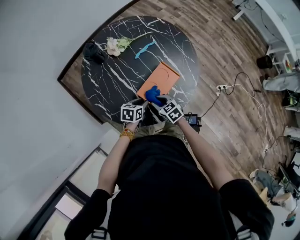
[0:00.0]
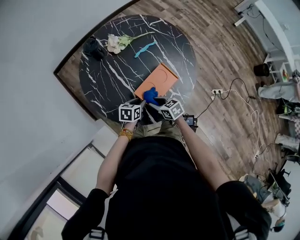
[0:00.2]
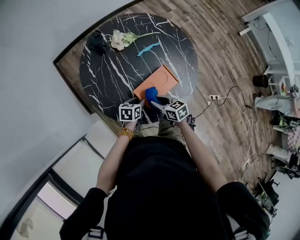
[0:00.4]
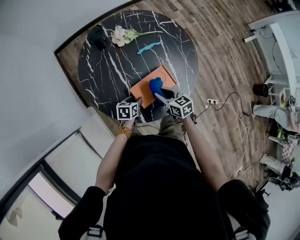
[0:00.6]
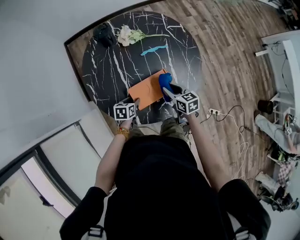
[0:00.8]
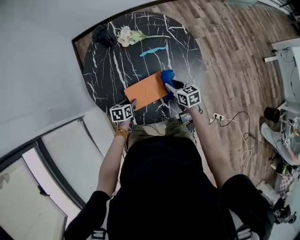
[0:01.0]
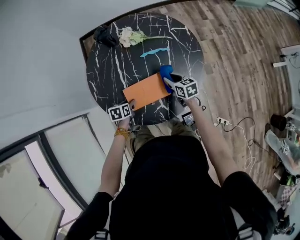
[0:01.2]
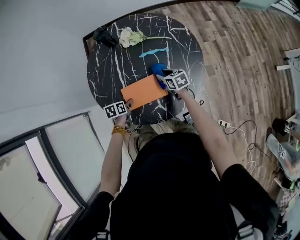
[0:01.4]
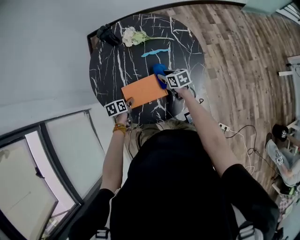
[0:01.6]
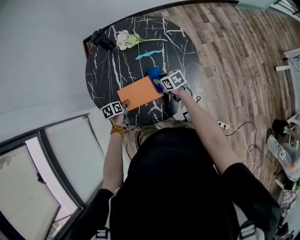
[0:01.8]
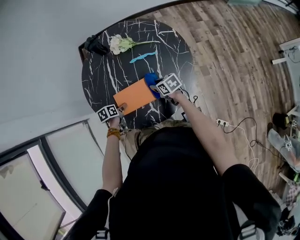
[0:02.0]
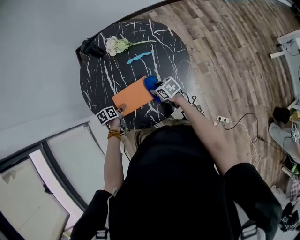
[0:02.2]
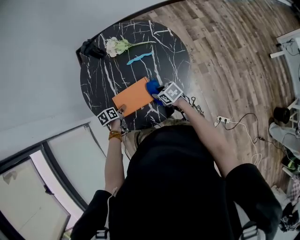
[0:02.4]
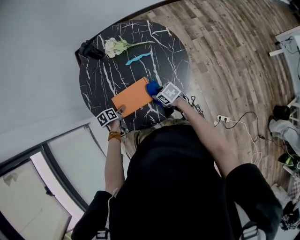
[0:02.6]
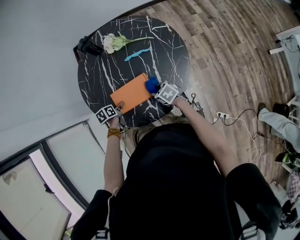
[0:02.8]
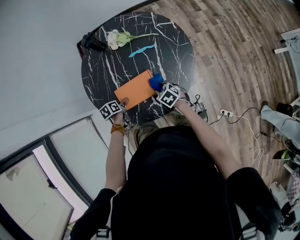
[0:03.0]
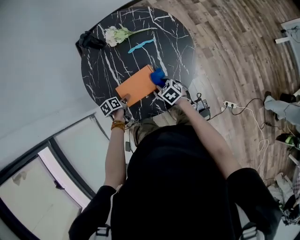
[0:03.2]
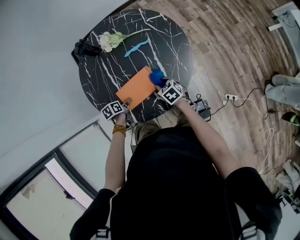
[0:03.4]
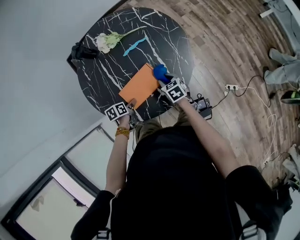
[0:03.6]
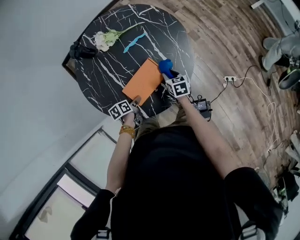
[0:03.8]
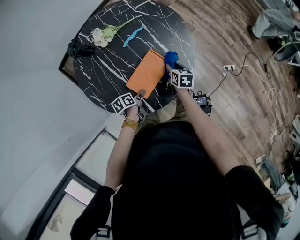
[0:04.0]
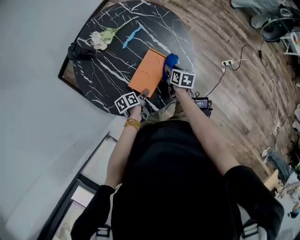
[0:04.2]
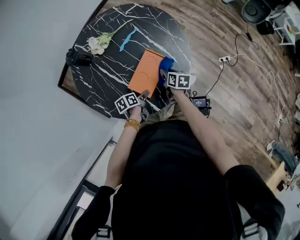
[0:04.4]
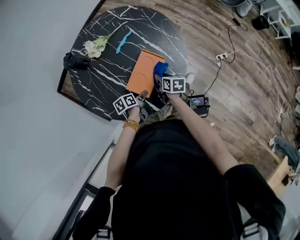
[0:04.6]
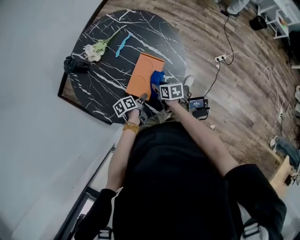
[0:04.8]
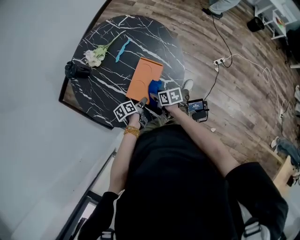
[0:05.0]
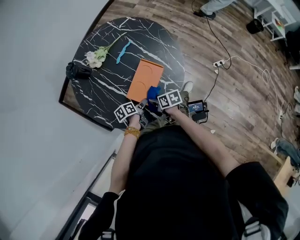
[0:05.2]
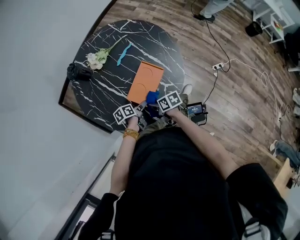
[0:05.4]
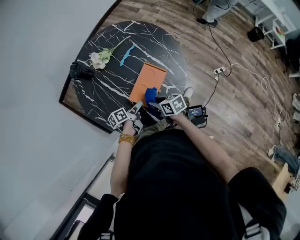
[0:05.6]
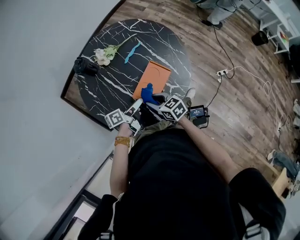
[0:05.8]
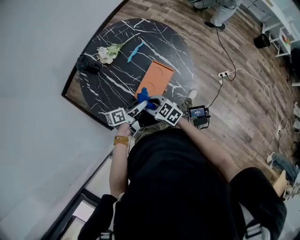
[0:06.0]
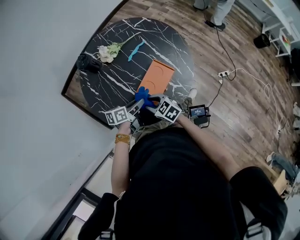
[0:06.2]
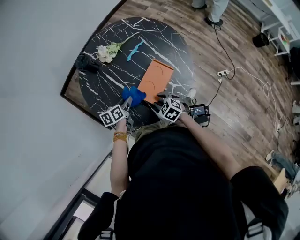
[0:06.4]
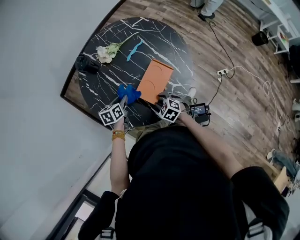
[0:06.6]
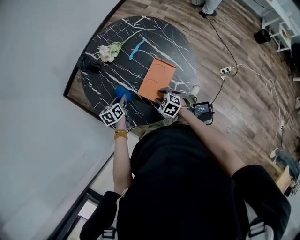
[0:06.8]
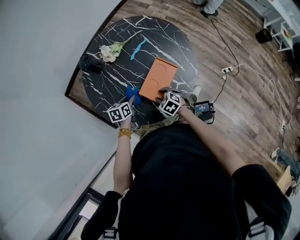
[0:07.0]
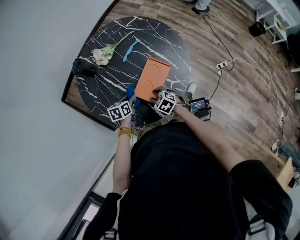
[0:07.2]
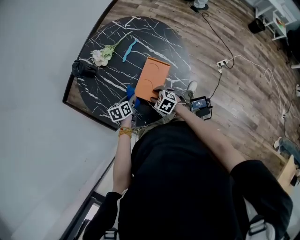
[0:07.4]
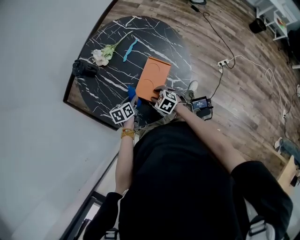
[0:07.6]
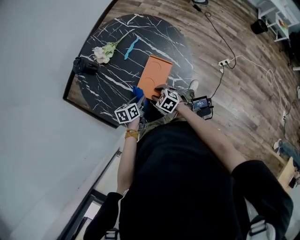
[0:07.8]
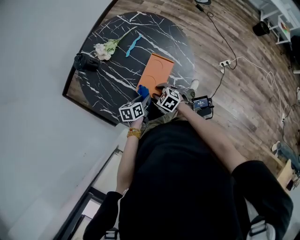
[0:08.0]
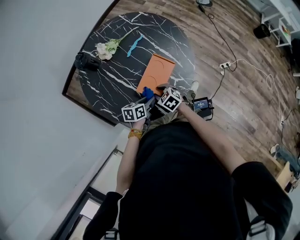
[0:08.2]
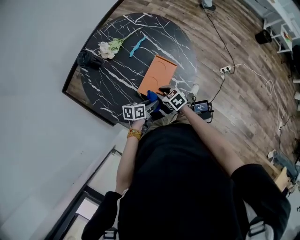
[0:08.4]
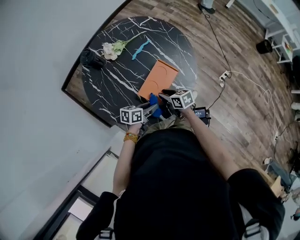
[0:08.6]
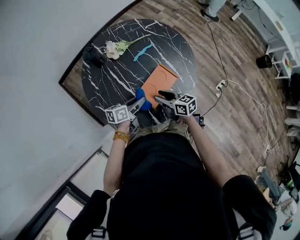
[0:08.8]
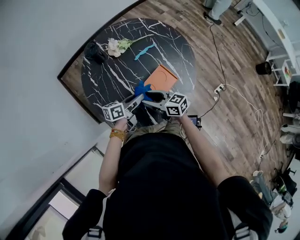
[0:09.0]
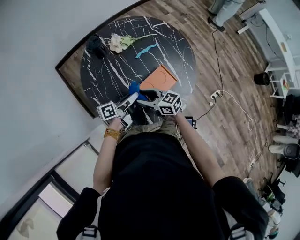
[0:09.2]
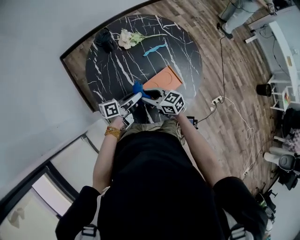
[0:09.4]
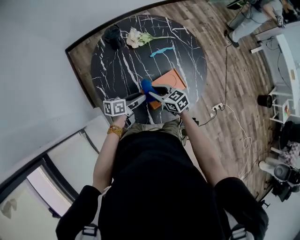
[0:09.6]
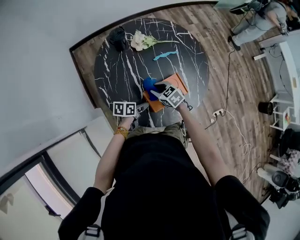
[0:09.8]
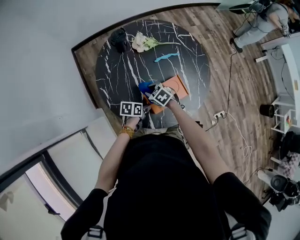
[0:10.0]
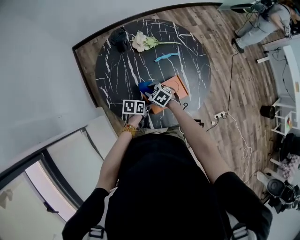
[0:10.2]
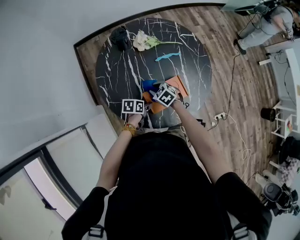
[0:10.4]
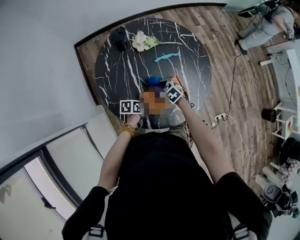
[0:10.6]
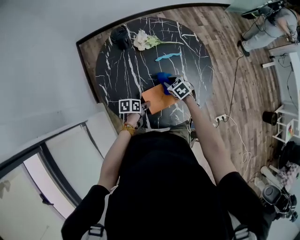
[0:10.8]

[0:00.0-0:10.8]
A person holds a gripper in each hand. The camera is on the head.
0:00.0 to 0:01.6: The left gripper rolls counterclockwise, seen from behind, by some 50 degrees. Meanwhile the right gripper ends up some 25 cm from where it was, and turns by roughly 30 degrees.
0:01.6 to 0:03.0: The right gripper goes some 10 cm backward, and turns by approximately 30 degrees.
0:03.0 to 0:04.6: The left gripper changes its angle by some 40 degrees. Meanwhile the right gripper moves roughly 10 cm, and twists roughly 80 degrees clockwise, seen from behind.
0:04.6 to 0:06.2: The right gripper travels to the left, backward and upward by about 20 cm, and rolls counterclockwise, seen from behind, by about 50 degrees, while the left gripper shifts roughly 10 cm upward, changes its angle by roughly 30 degrees, and closes.
0:06.2 to 0:07.8: Both grippers travel together downward, some 5 cm. The left gripper moves some 10 cm to the left and comes back, and turns by approximately 20 degrees.
0:07.8 to 0:09.2: The grippers both shift upward by roughly 10 cm. The right gripper tips its fingers upward by about 40 degrees. The left gripper points its fingers roughly 40 degrees further upward.
0:09.2 to 0:10.8: The right gripper moves roughly 20 cm, tips its fingers downward by about 40 degrees, and closes its fingers. The left gripper heads downward, covering about 15 cm, and tips its fingers downward by roughly 40 degrees.

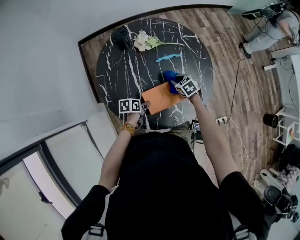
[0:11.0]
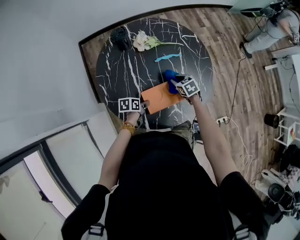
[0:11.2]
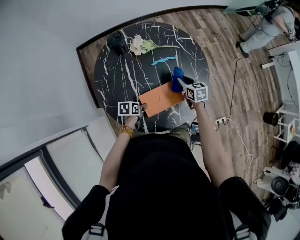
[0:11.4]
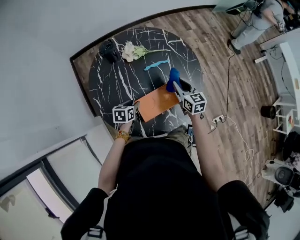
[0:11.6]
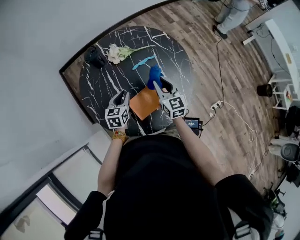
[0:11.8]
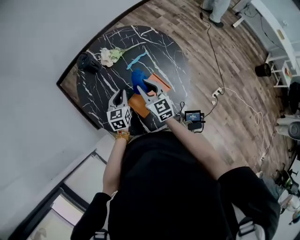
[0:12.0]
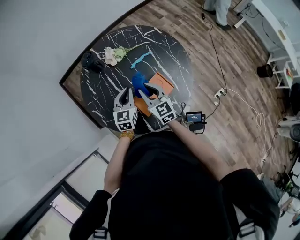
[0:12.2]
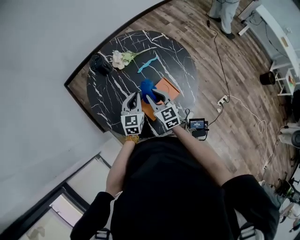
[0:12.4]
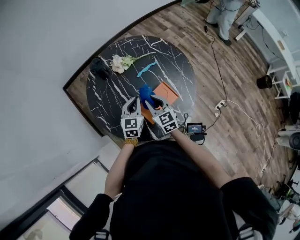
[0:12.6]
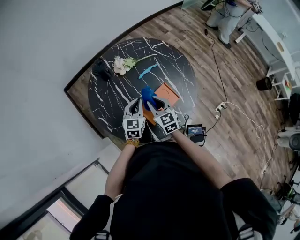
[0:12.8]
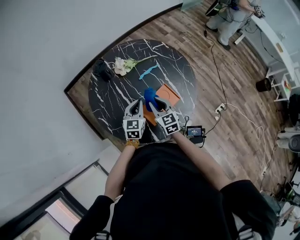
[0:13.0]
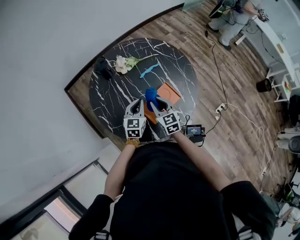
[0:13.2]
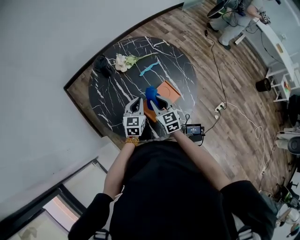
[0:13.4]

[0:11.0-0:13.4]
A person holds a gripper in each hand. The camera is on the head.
0:11.0 to 0:12.2: The left gripper goes approximately 20 cm upward and forward, swivels approximately 60 degrees, and closes up. The right gripper shifts roughly 20 cm upward, to the left and backward, and angles its fingers upward, by roughly 40 degrees.
0:12.2 to 0:13.4: The right gripper changes place by approximately 5 cm.

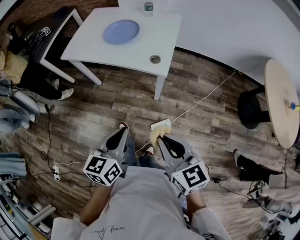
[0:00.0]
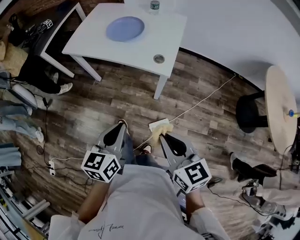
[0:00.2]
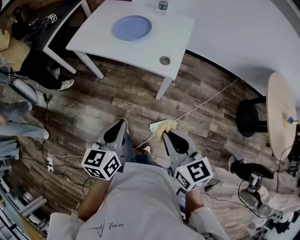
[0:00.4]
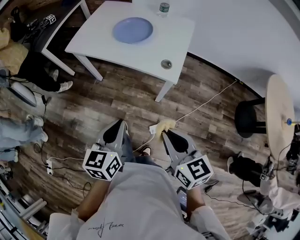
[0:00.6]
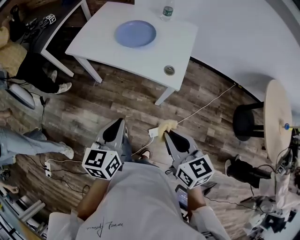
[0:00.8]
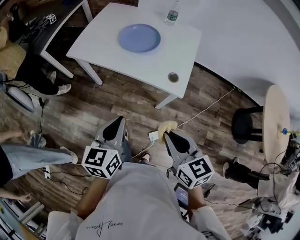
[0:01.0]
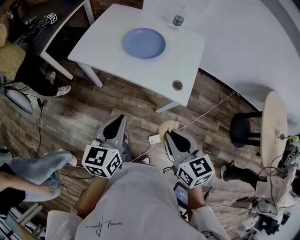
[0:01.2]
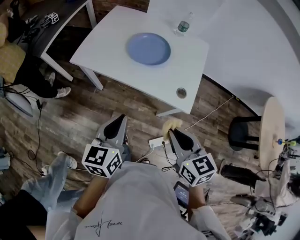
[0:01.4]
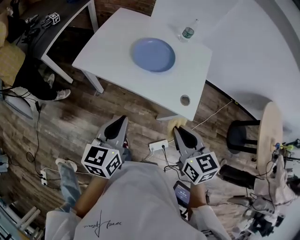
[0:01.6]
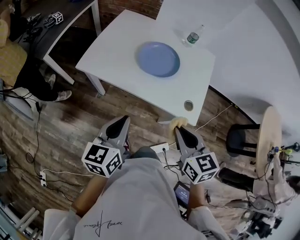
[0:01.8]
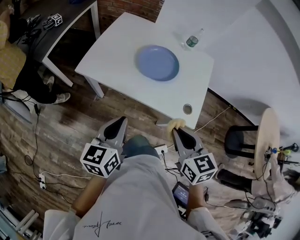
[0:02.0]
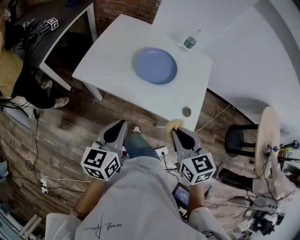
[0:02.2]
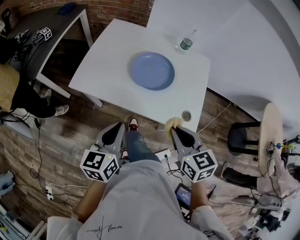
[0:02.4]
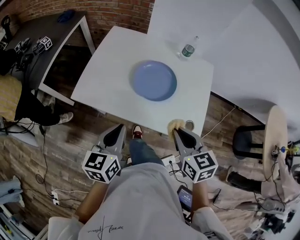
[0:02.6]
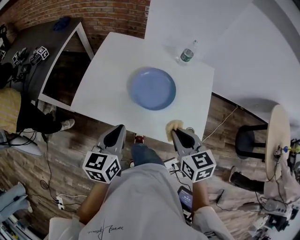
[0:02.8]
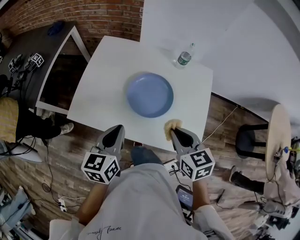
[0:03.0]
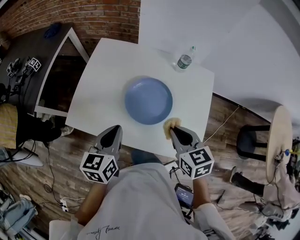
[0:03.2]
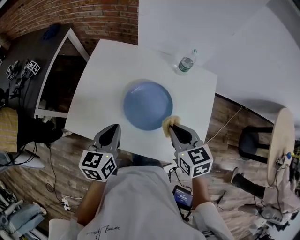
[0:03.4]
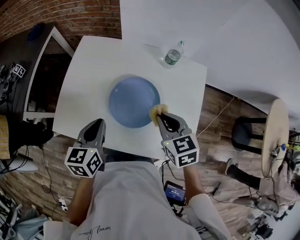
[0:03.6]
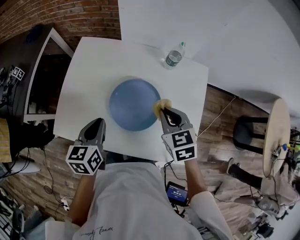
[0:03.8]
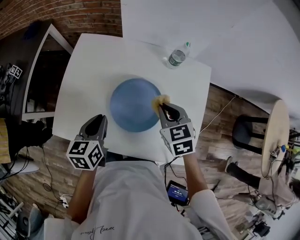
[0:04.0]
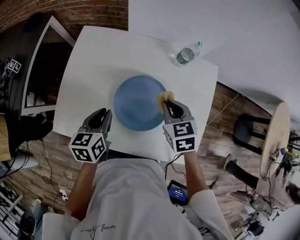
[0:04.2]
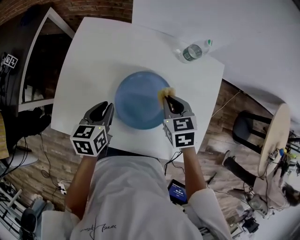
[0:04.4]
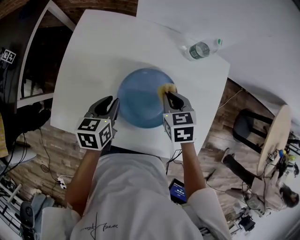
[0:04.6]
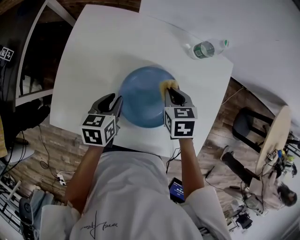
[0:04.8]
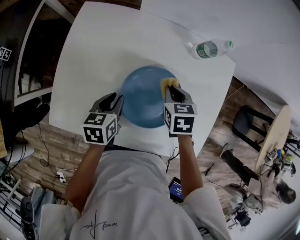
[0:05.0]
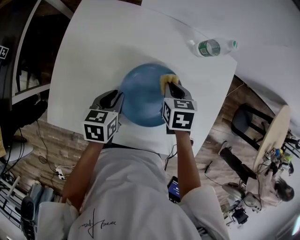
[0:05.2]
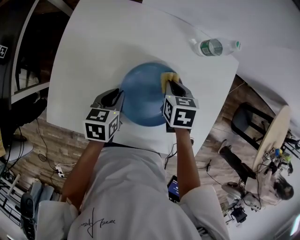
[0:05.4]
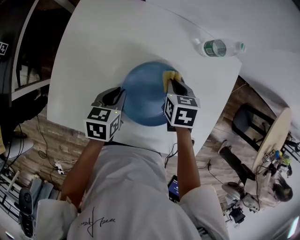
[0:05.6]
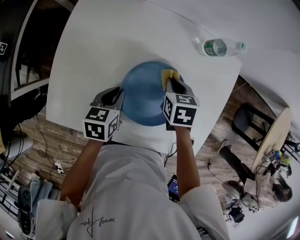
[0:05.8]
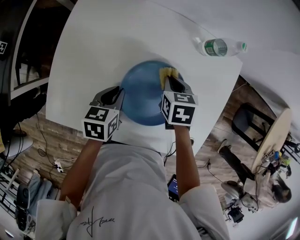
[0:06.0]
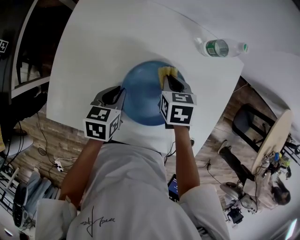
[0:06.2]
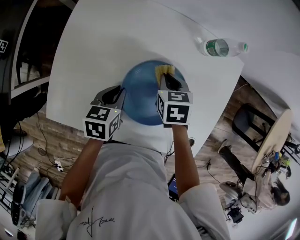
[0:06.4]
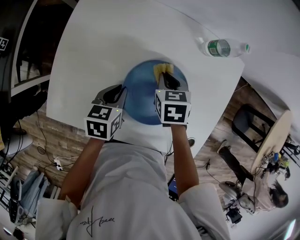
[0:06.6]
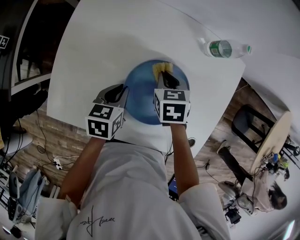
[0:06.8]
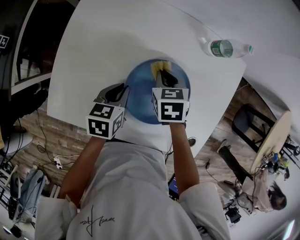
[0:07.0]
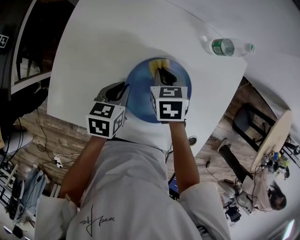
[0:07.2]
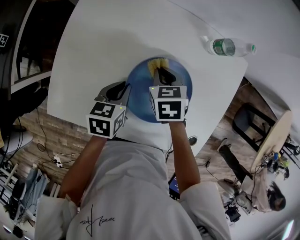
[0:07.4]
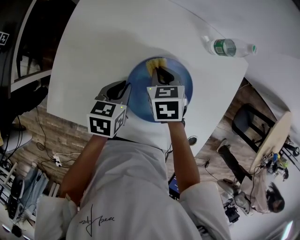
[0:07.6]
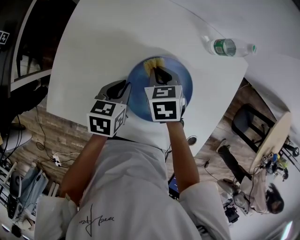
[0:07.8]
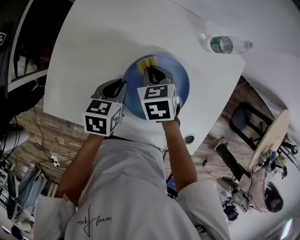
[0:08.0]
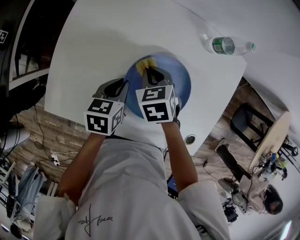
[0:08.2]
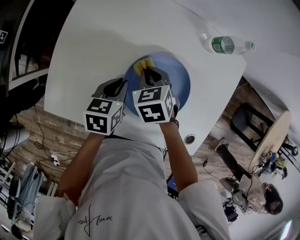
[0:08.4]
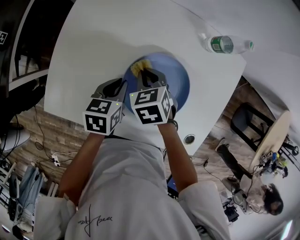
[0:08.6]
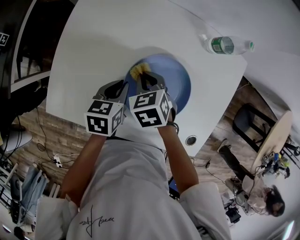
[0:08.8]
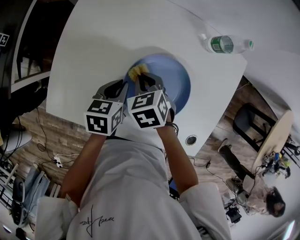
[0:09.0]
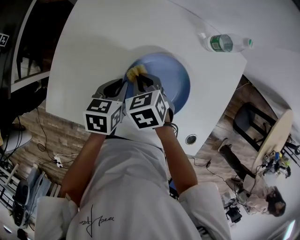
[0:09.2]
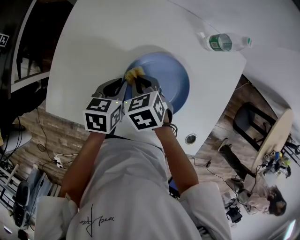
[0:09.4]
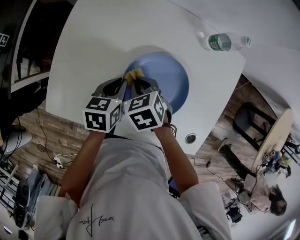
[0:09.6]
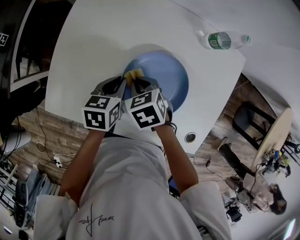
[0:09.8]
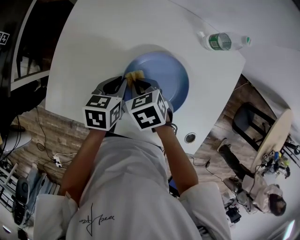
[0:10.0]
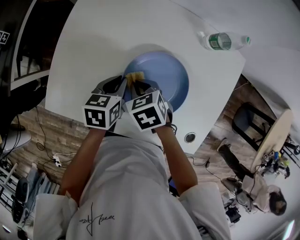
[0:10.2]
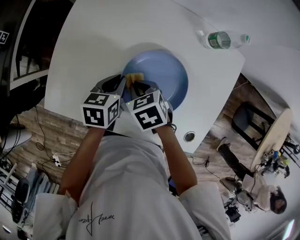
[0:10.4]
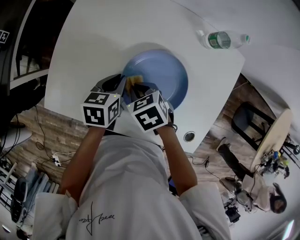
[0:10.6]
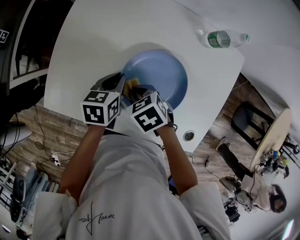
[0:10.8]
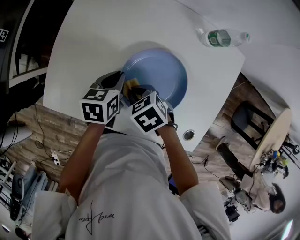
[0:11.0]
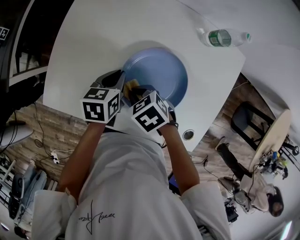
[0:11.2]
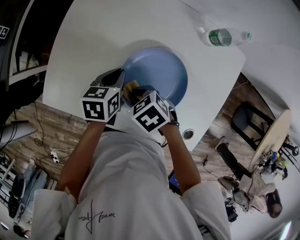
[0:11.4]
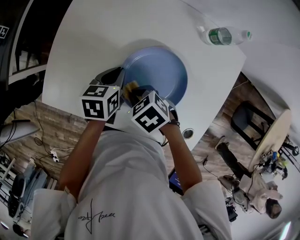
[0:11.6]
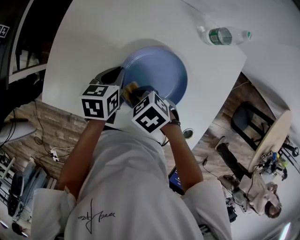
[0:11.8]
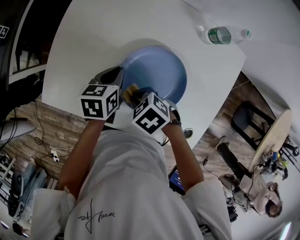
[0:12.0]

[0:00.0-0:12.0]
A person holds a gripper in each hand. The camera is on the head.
0:00.0 to 0:01.6: The grippers both shift forward and to the left by roughly 30 cm.
0:01.6 to 0:03.0: The two grippers go about 20 cm forward.
0:03.0 to 0:04.4: The two grippers go roughly 25 cm forward and downward.
0:04.4 to 0:06.0: Both grippers travel together downward, approximately 5 cm.
0:06.0 to 0:07.6: The right gripper travels to the left by some 10 cm.
0:07.6 to 0:09.0: The right gripper changes place by roughly 5 cm.
0:09.0 to 0:10.4: There are only small adjustments of the grippers.
0:10.4 to 0:12.0: The right gripper moves some 5 cm, and changes its angle by about 20 degrees.
